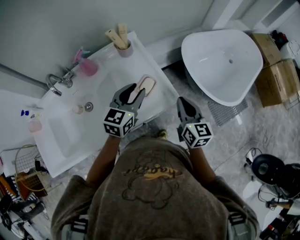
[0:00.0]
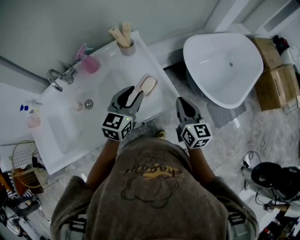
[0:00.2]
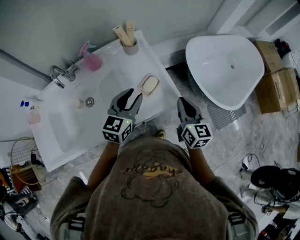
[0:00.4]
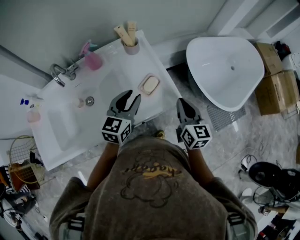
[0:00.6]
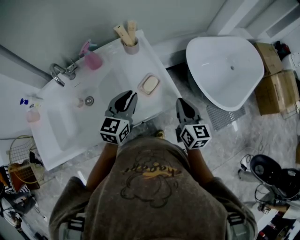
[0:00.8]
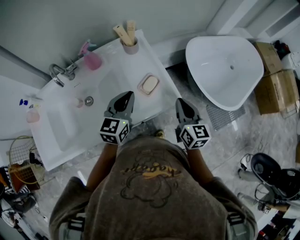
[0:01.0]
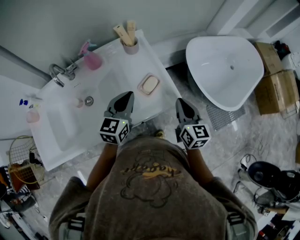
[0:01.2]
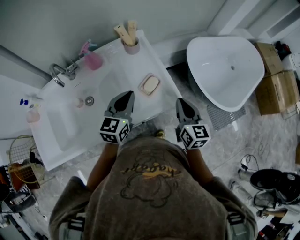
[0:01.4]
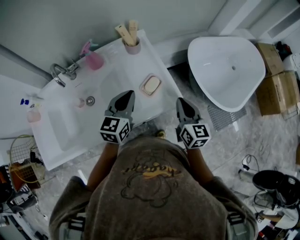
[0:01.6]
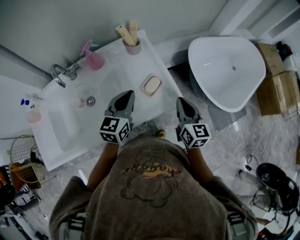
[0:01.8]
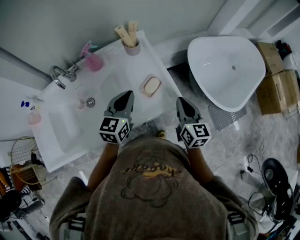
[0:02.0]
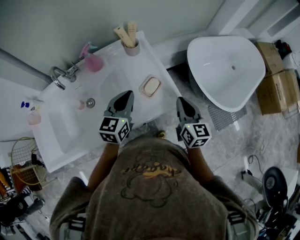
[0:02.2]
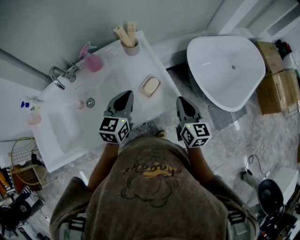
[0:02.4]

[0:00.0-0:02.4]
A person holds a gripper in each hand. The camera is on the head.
0:00.0 to 0:01.2: The left gripper travels to the left by some 5 cm, and closes up.
0:01.2 to 0:02.4: The grippers stay close to where they were, moving slightly.

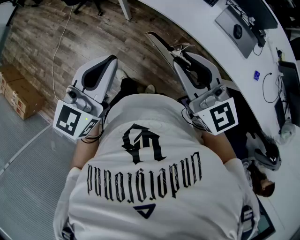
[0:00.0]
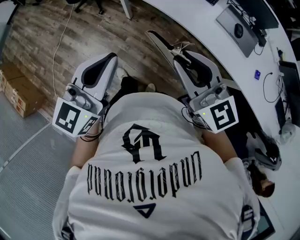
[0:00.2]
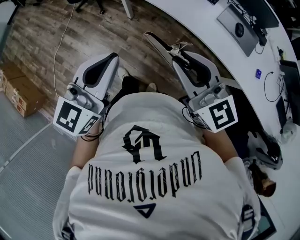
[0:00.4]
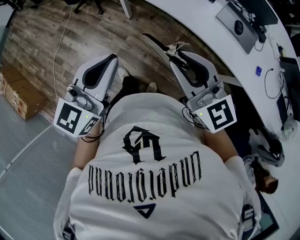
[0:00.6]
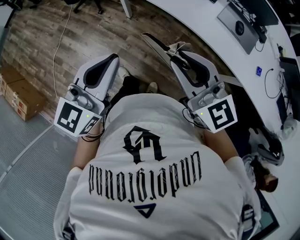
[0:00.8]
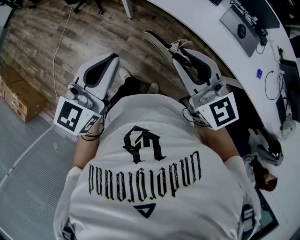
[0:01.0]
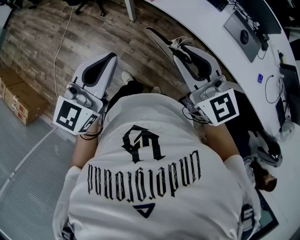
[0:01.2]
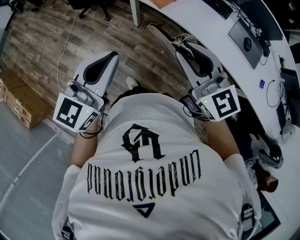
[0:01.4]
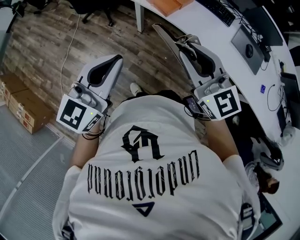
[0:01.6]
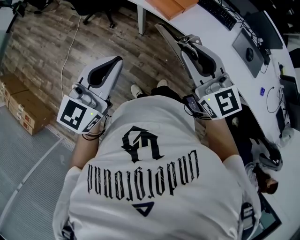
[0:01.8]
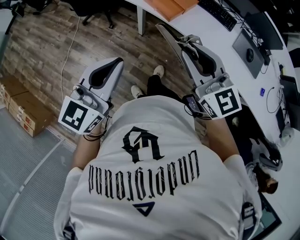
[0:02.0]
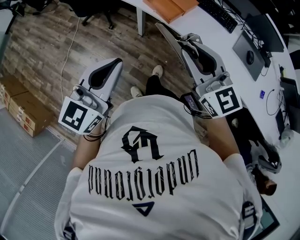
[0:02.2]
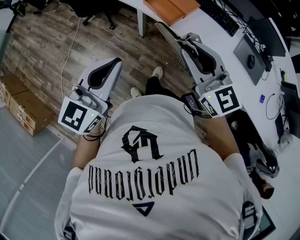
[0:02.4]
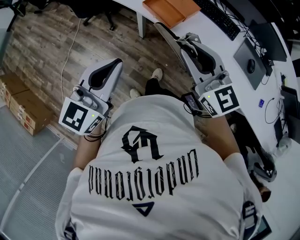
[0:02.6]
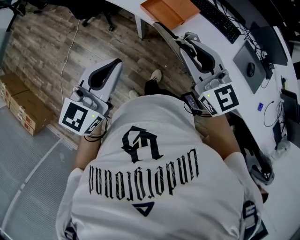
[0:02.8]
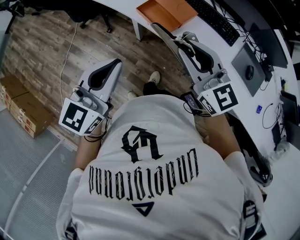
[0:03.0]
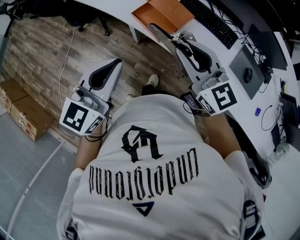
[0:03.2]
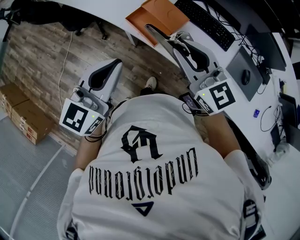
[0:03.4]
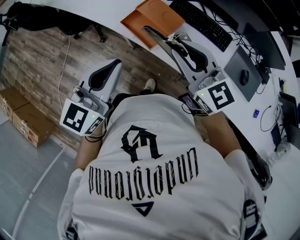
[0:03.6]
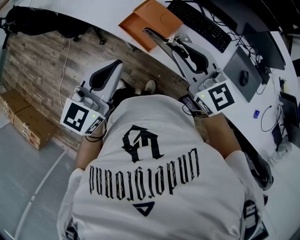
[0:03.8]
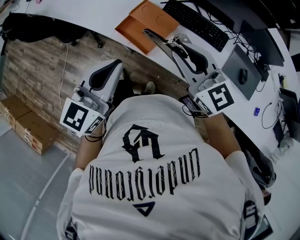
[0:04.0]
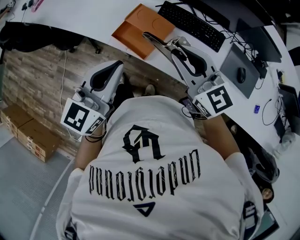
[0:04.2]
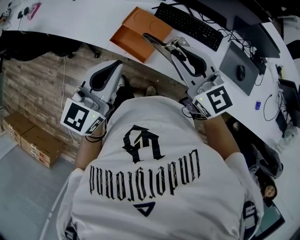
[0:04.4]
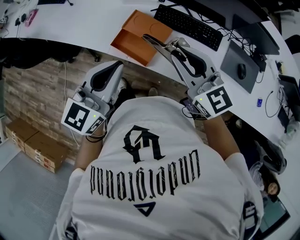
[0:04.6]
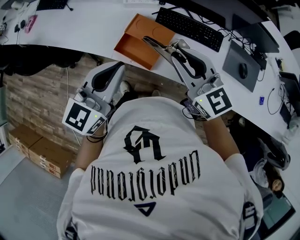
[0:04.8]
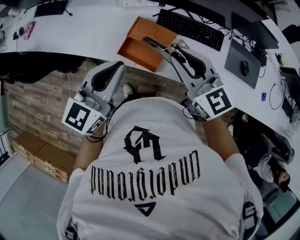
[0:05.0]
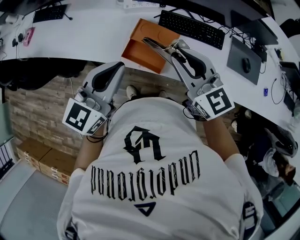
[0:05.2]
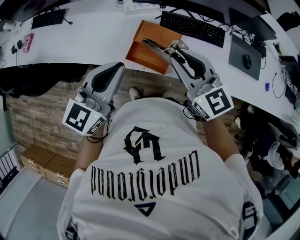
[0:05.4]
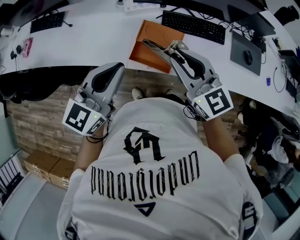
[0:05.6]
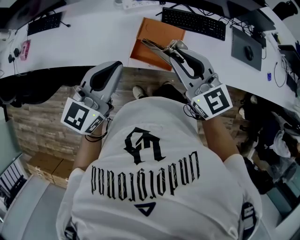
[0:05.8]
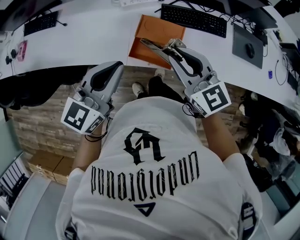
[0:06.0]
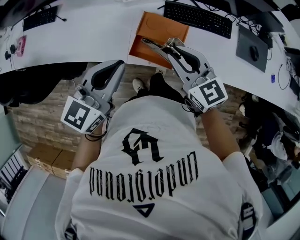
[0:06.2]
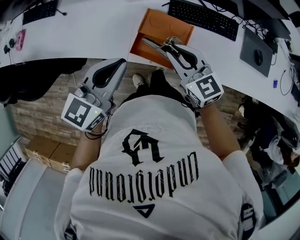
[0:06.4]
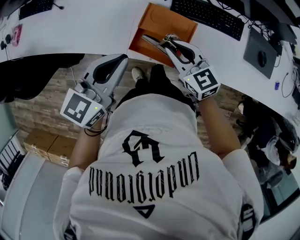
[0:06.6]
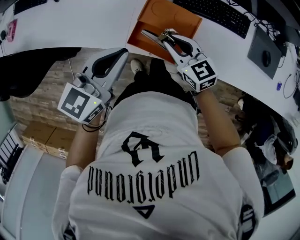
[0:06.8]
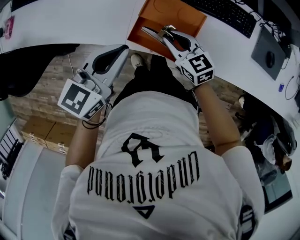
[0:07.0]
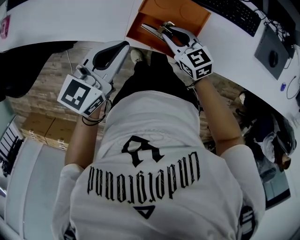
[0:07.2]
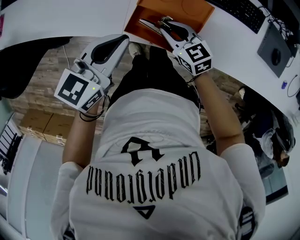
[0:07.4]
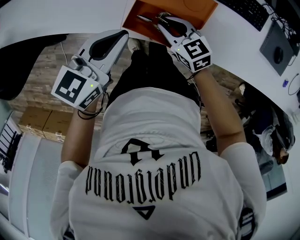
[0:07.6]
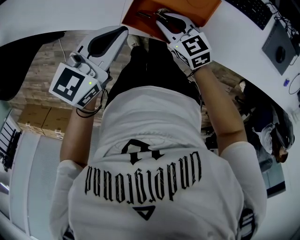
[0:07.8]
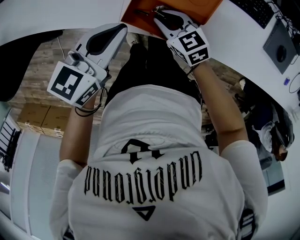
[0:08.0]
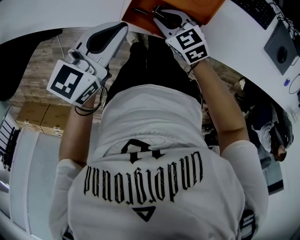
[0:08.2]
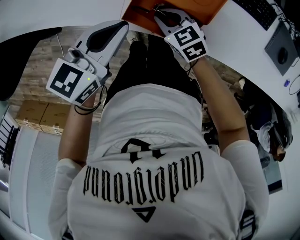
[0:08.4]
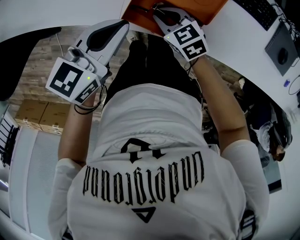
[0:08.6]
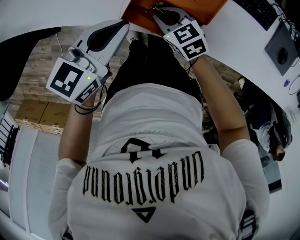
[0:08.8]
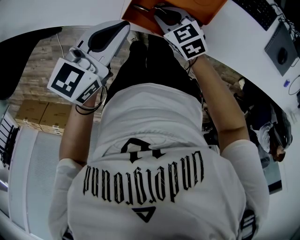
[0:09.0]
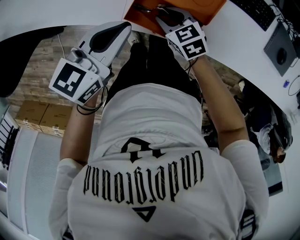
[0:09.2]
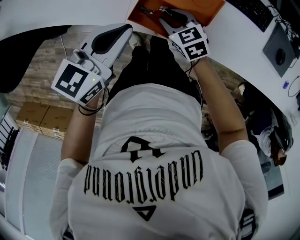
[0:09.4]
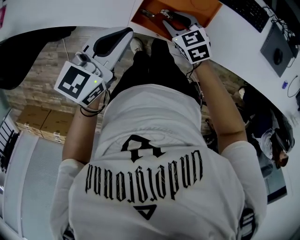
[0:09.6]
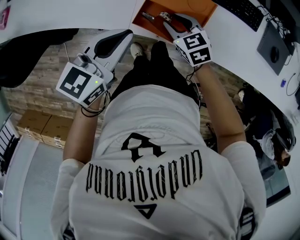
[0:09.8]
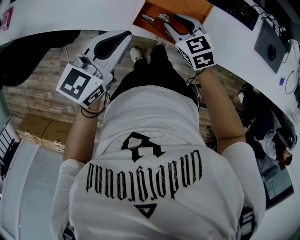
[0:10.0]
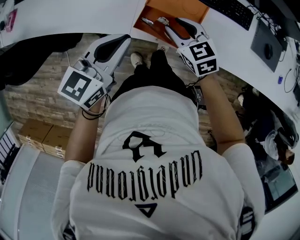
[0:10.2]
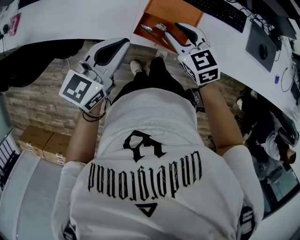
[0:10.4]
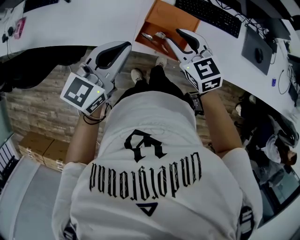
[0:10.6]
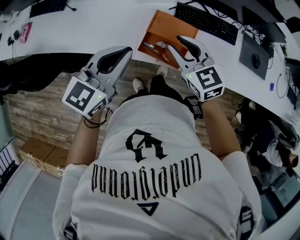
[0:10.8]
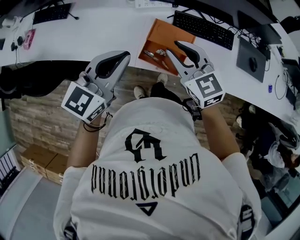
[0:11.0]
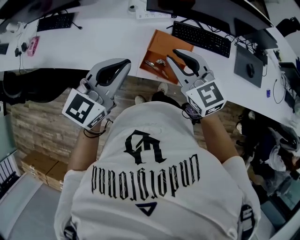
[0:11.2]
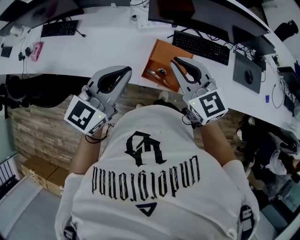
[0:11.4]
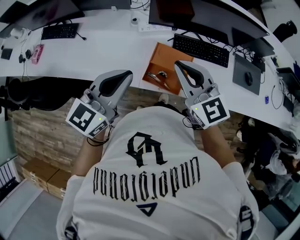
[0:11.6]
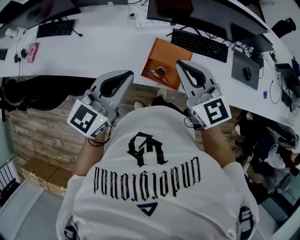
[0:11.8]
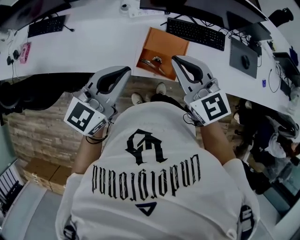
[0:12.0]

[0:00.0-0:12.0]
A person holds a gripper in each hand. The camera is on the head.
0:00.0 to 0:01.6: Both grippers move to the left and forward, approximately 20 cm.
0:01.6 to 0:03.0: The two grippers go some 20 cm forward.
0:03.0 to 0:04.4: The two grippers go some 15 cm forward and to the right.
0:04.4 to 0:06.0: The right gripper goes about 15 cm to the left. Meanwhile the left gripper moves to the left and forward, about 15 cm, and changes its angle by about 20 degrees.
0:06.0 to 0:07.6: The left gripper heads downward and forward, covering some 20 cm, and changes its angle by about 20 degrees. Meanwhile the right gripper shifts about 30 cm downward, and swivels approximately 30 degrees.
0:07.6 to 0:09.0: The grippers stay close to where they were, moving slightly.
0:09.0 to 0:10.4: The left gripper travels upward and backward by some 15 cm, while the right gripper goes roughly 20 cm upward, and rotates about 20 degrees.
0:10.4 to 0:12.0: The left gripper travels upward by roughly 10 cm, while the right gripper shifts some 20 cm upward, swivels about 20 degrees, and closes.

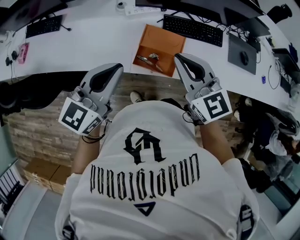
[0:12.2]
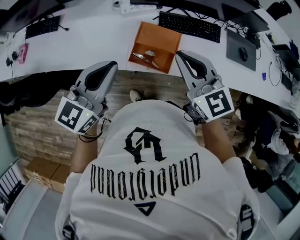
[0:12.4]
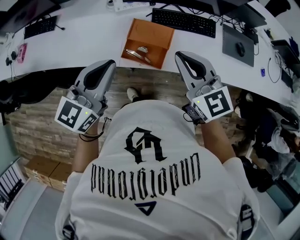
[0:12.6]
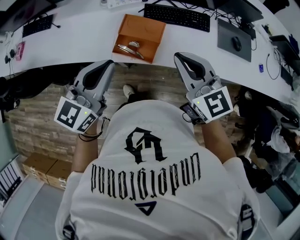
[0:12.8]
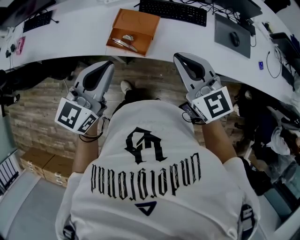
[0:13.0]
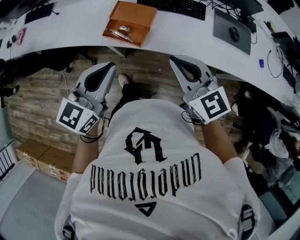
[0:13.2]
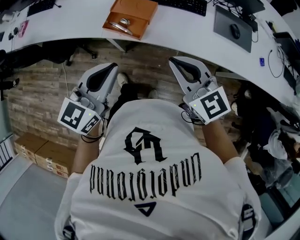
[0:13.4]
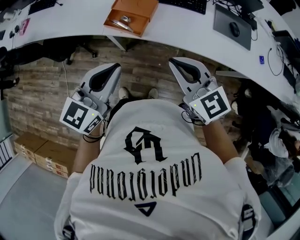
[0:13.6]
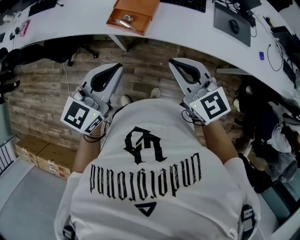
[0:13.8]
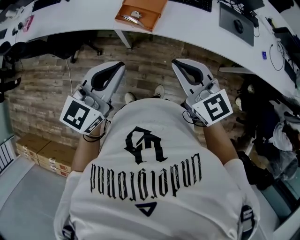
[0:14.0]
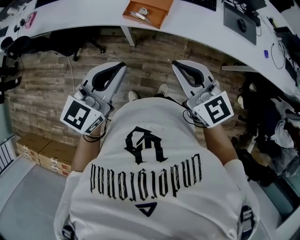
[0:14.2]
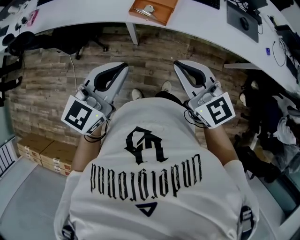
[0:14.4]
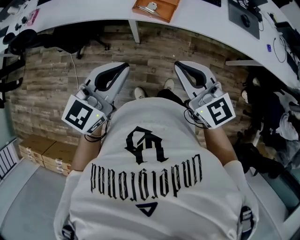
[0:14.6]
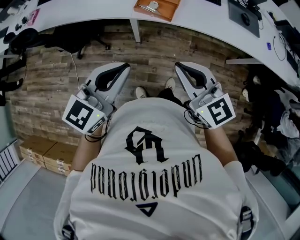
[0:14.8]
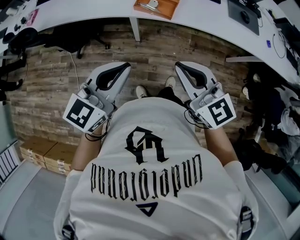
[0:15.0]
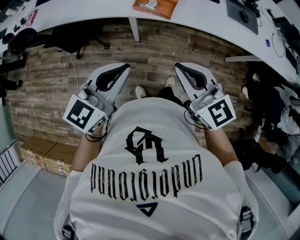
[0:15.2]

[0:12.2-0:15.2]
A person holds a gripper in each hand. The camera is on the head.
0:12.2 to 0:13.8: The two grippers go approximately 30 cm backward and to the right.
0:13.8 to 0:15.2: The two grippers go some 20 cm to the left and backward.

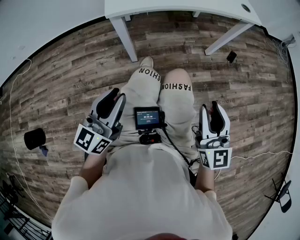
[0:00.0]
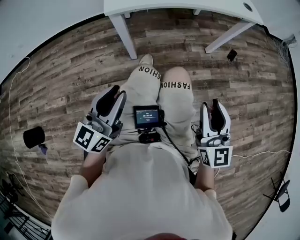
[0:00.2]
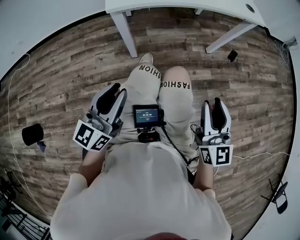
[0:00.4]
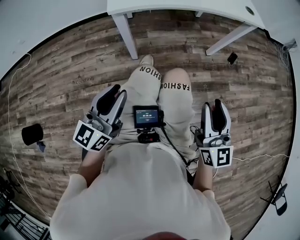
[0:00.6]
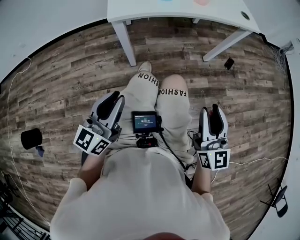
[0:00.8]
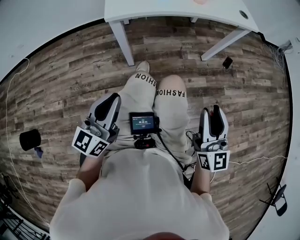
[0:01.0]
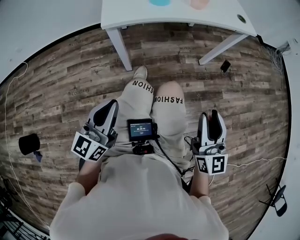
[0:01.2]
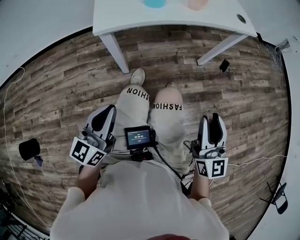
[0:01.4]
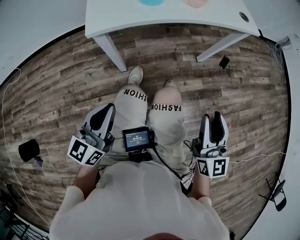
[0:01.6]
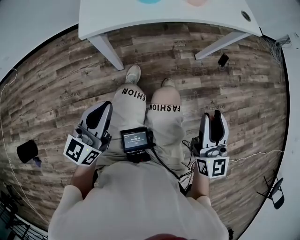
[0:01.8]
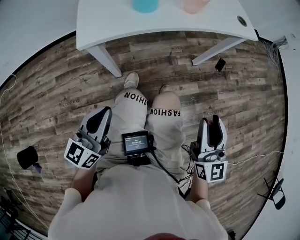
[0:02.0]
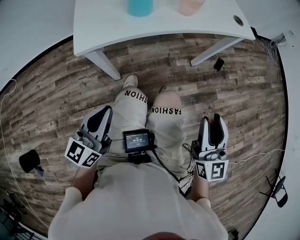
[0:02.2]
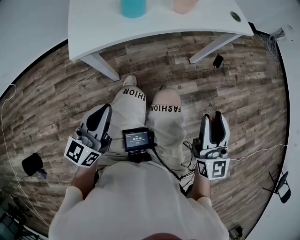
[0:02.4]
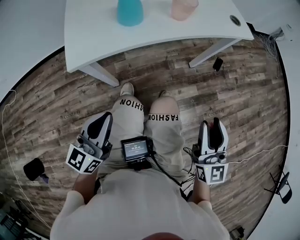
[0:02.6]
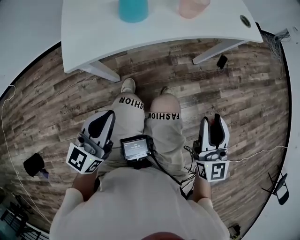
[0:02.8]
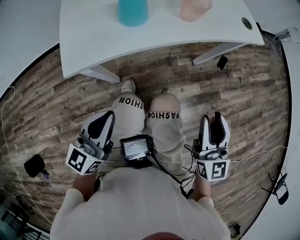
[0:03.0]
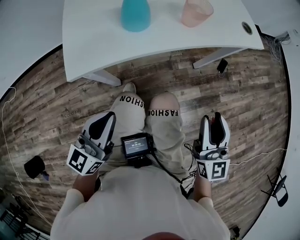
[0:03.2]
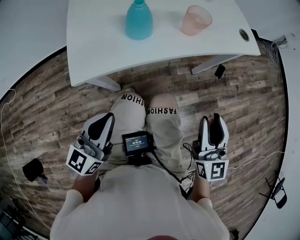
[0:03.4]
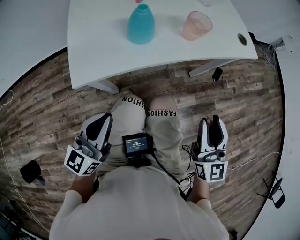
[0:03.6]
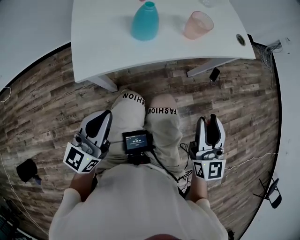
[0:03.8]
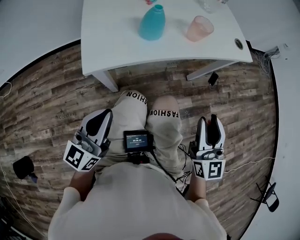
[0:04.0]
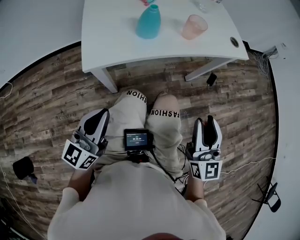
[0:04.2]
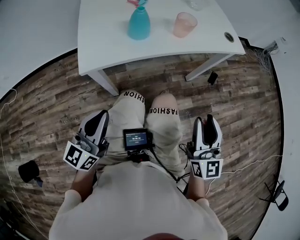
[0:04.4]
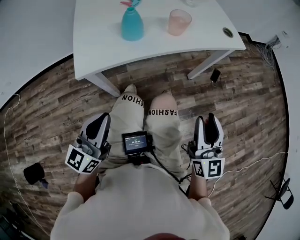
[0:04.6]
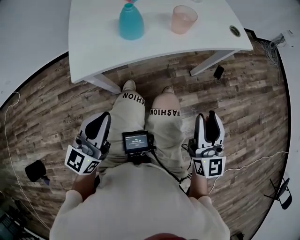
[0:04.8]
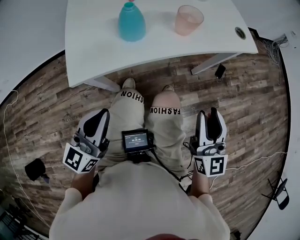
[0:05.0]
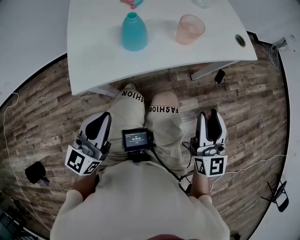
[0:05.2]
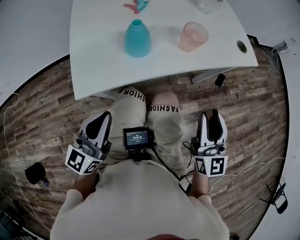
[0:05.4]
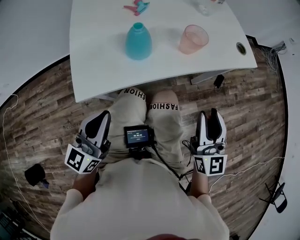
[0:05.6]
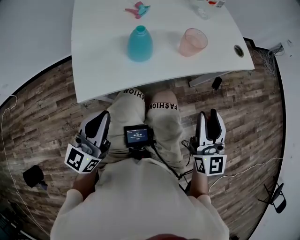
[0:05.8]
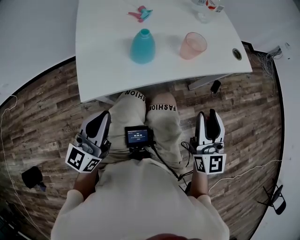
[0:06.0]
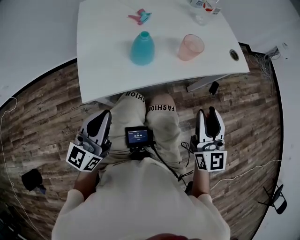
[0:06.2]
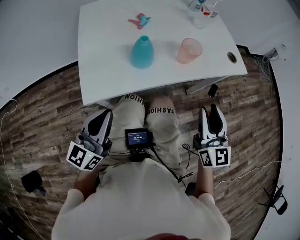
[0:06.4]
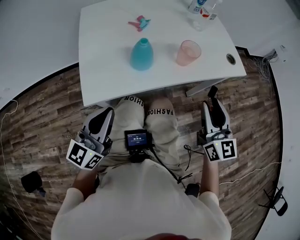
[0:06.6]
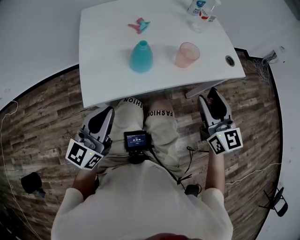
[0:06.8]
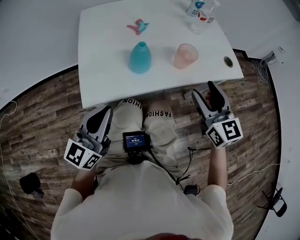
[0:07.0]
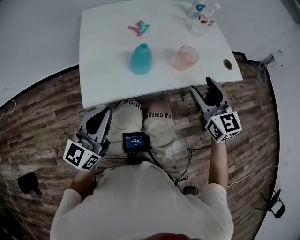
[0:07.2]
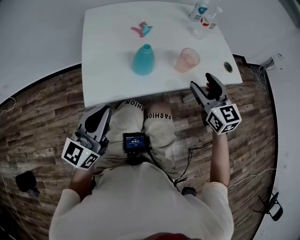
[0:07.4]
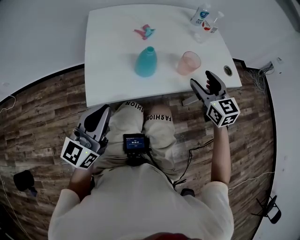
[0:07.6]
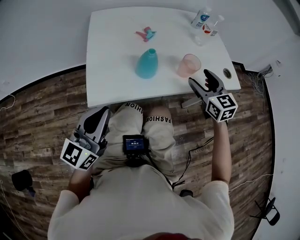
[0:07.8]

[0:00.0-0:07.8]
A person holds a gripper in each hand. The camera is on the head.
0:00.0 to 0:01.6: Both grippers travel together forward, approximately 10 cm. The left gripper closes up.
0:01.6 to 0:03.2: The grippers both shift forward by approximately 15 cm.
0:03.2 to 0:04.6: The left gripper shifts by about 5 cm, while the right gripper changes place by some 5 cm.
0:04.6 to 0:06.2: The grippers both shift forward and to the left by roughly 10 cm.
0:06.2 to 0:07.8: The right gripper heads forward, covering some 20 cm, rotates approximately 30 degrees, and opens its fingers. The left gripper travels upward by about 5 cm.
